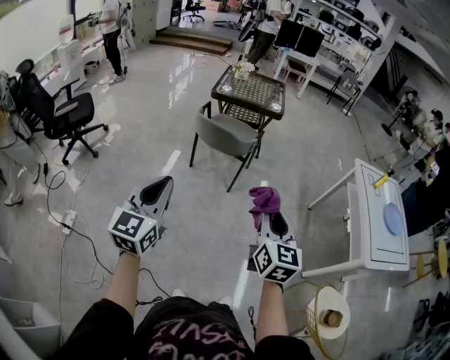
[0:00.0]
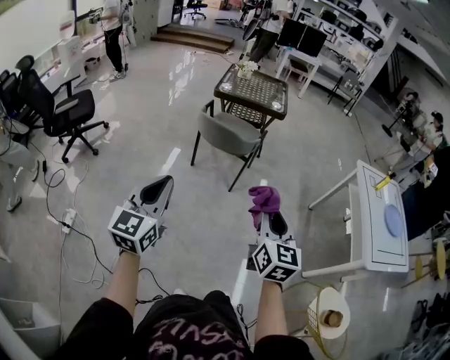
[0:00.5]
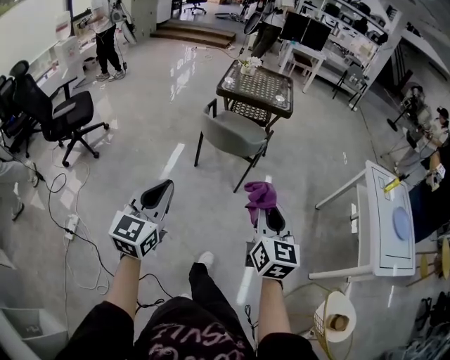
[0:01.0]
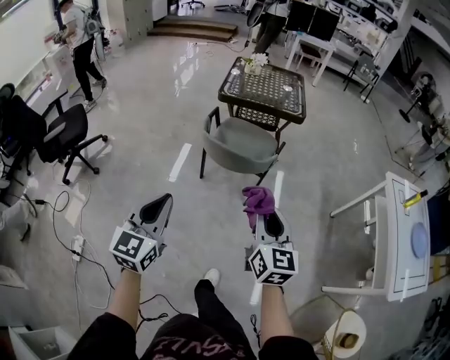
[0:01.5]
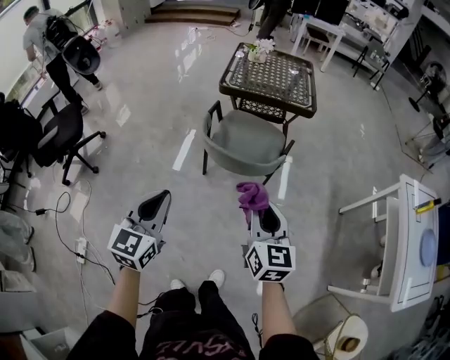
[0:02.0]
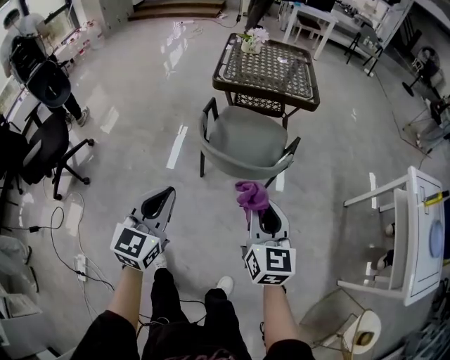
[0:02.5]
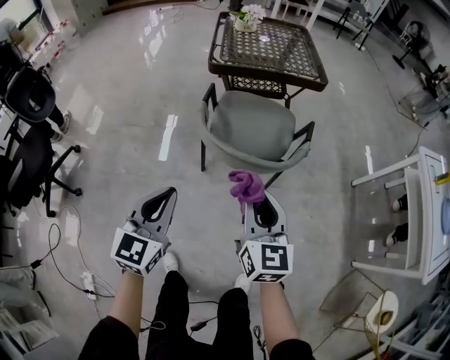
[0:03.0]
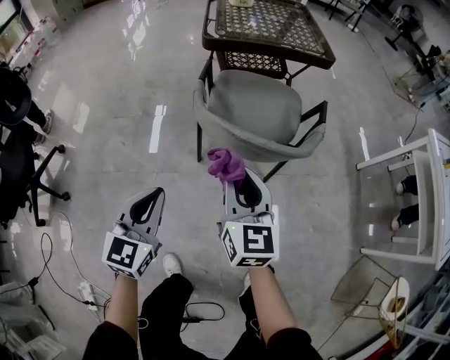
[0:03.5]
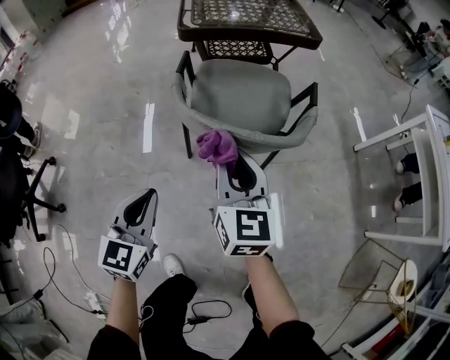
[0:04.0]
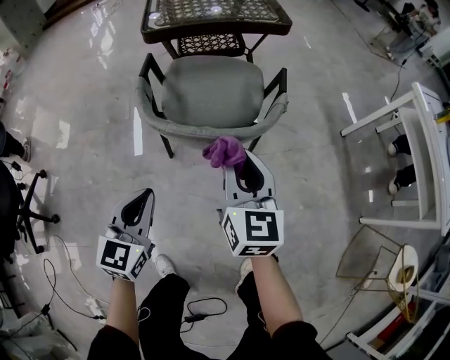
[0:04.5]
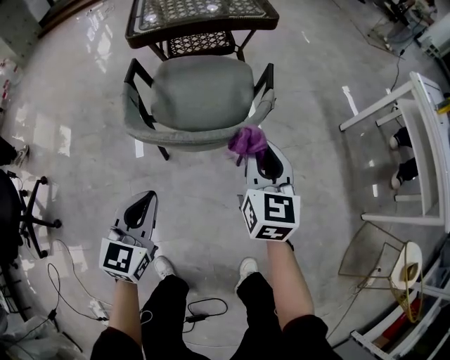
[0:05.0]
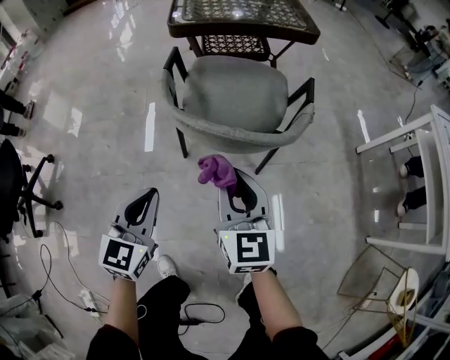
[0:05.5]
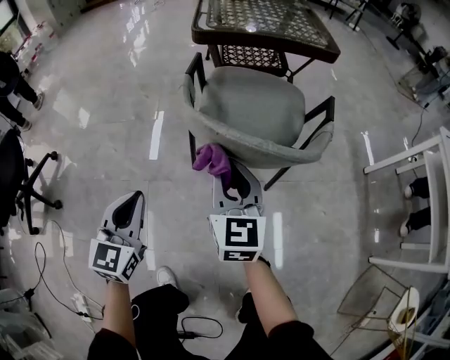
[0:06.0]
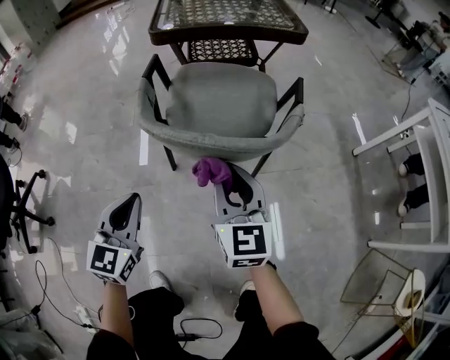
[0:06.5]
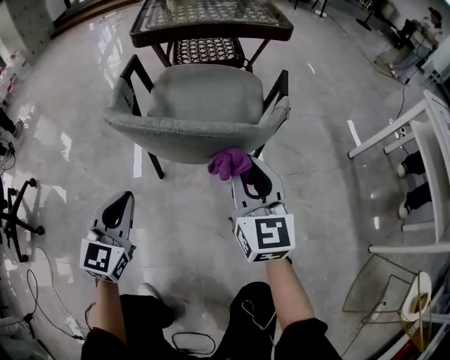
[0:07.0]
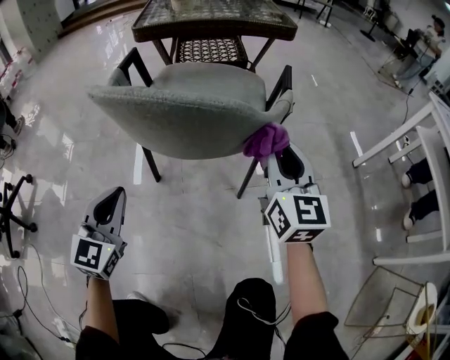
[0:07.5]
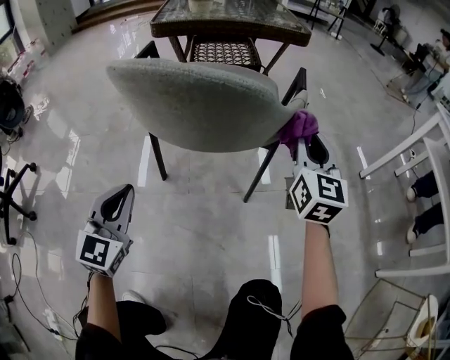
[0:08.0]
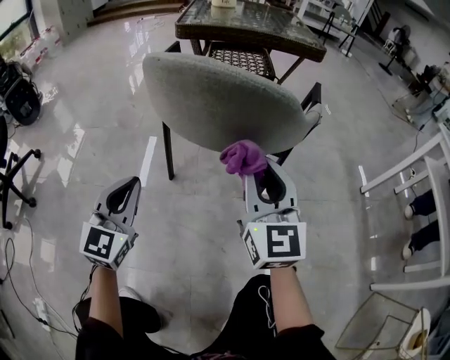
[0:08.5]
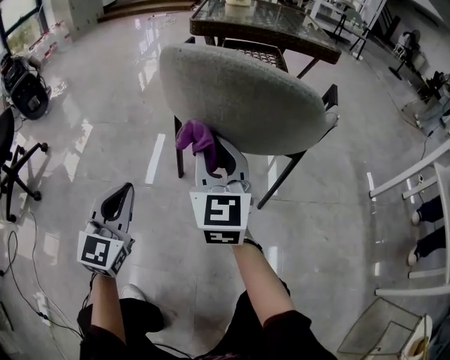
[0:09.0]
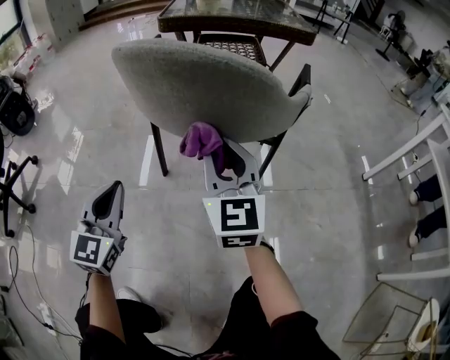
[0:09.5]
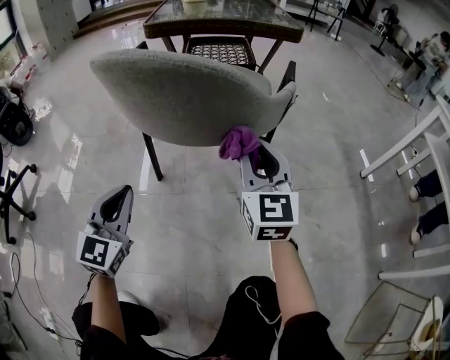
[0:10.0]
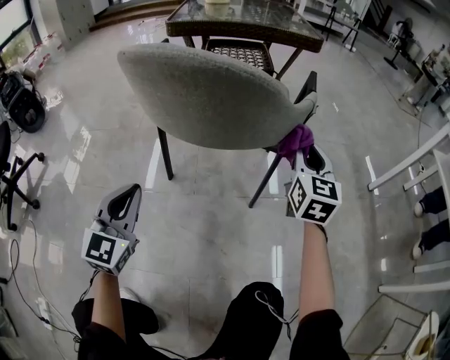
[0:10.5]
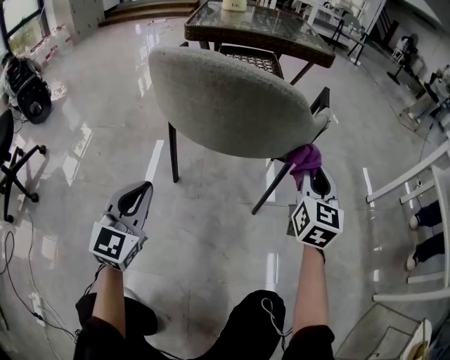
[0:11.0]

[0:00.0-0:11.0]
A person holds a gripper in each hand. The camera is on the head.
0:00.0 to 0:02.0: The two grippers go some 35 cm forward.
0:02.0 to 0:03.5: The right gripper is displaced to the left, downward and forward by some 35 cm, while the left gripper goes some 35 cm downward, forward and to the left.
0:03.5 to 0:05.5: The left gripper shifts about 10 cm to the right and downward. The right gripper goes roughly 5 cm downward, and goes to the right and returns, roughly 25 cm each way.
0:05.5 to 0:07.5: The right gripper travels to the right, forward and downward by approximately 25 cm, while the left gripper is displaced downward by roughly 15 cm.
0:07.5 to 0:09.0: The left gripper is displaced to the left and backward by approximately 10 cm. The right gripper travels to the left by some 25 cm.
0:09.0 to 0:11.0: The right gripper is displaced to the right by approximately 30 cm, and turns by approximately 20 degrees; the left gripper heads to the right, covering about 5 cm.

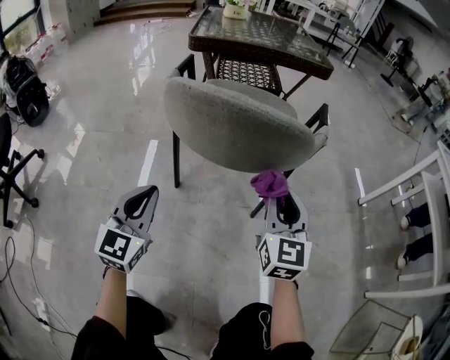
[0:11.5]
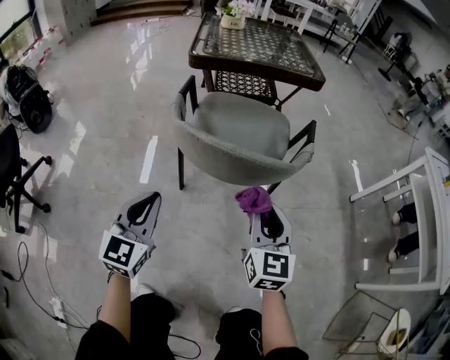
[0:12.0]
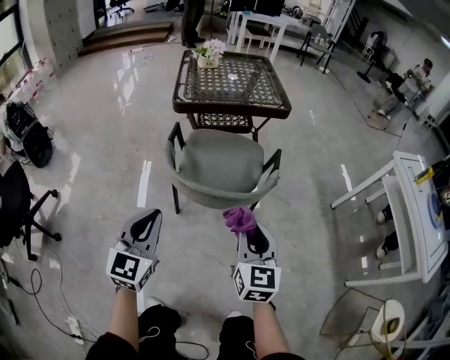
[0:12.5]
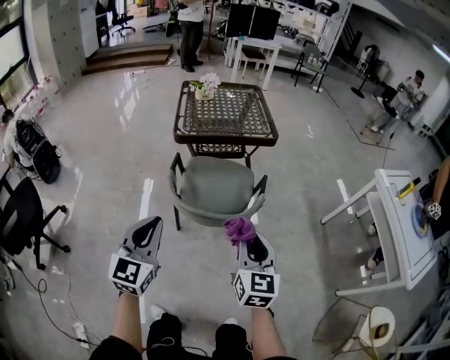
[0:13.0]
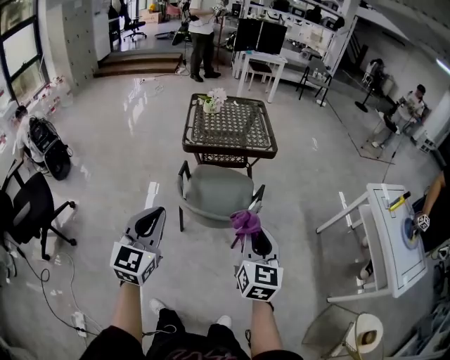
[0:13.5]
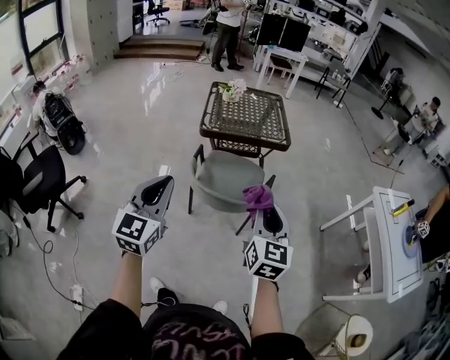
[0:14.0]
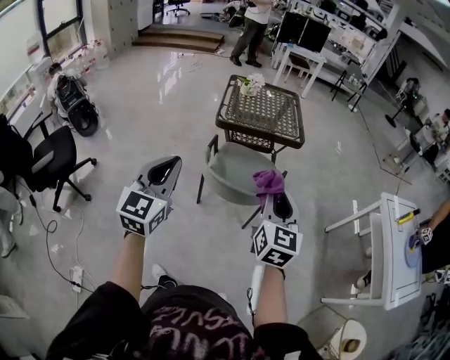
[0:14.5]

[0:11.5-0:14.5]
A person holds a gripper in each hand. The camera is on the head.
0:11.5 to 0:13.0: The grippers both shift upward by approximately 40 cm.
0:13.0 to 0:14.5: The right gripper goes approximately 20 cm upward. The left gripper goes about 20 cm upward and backward.

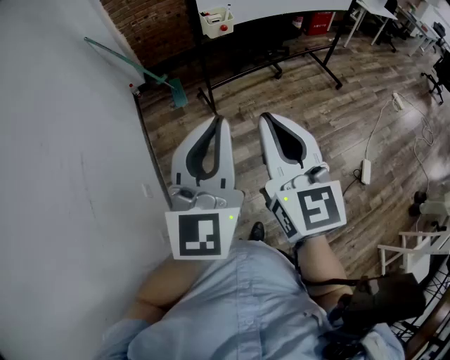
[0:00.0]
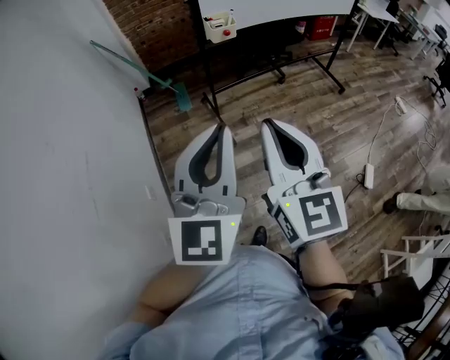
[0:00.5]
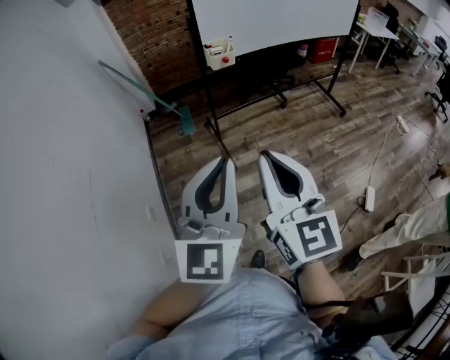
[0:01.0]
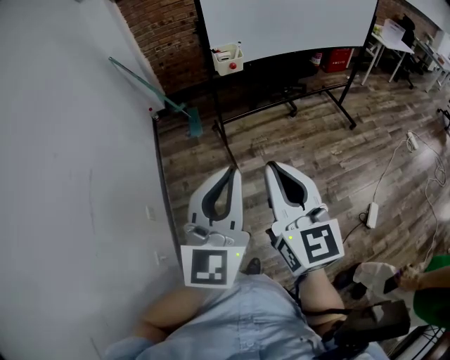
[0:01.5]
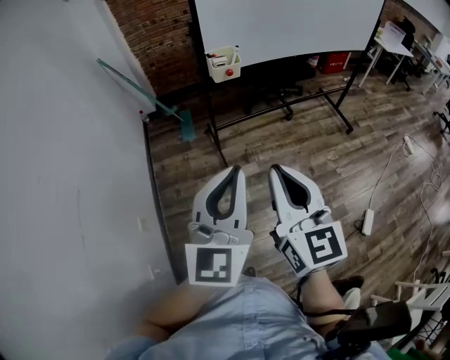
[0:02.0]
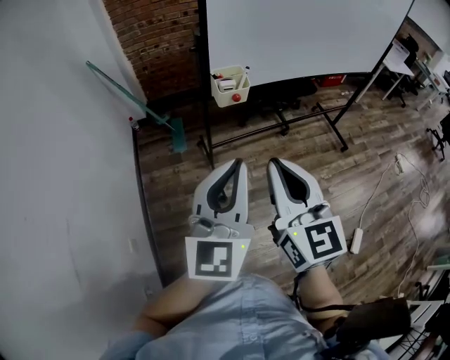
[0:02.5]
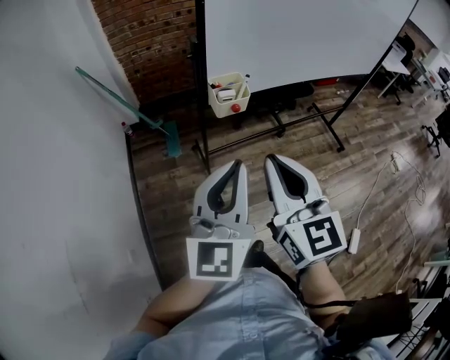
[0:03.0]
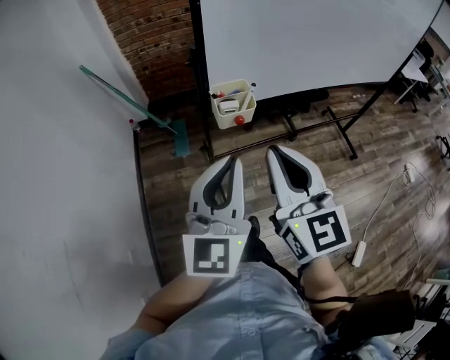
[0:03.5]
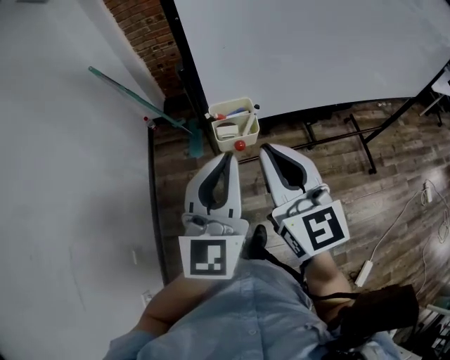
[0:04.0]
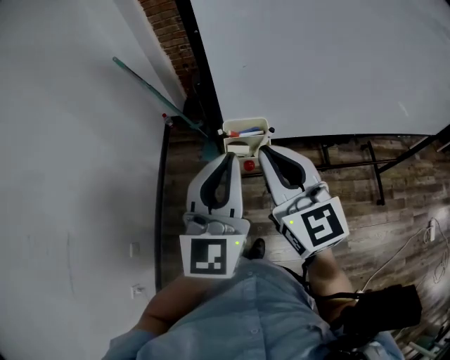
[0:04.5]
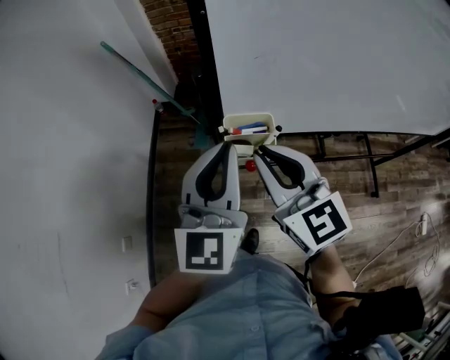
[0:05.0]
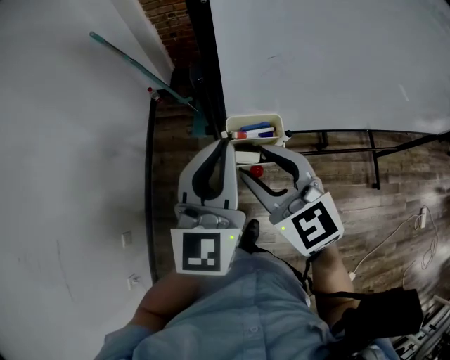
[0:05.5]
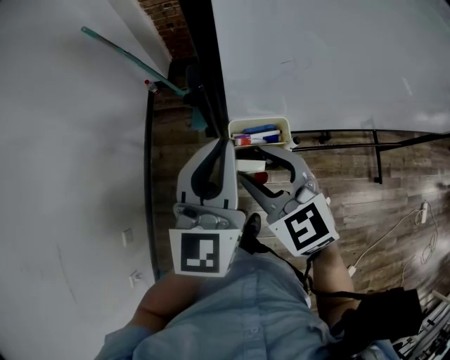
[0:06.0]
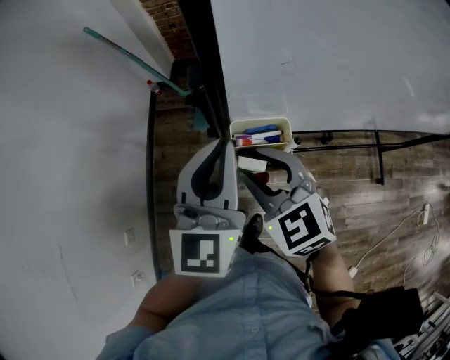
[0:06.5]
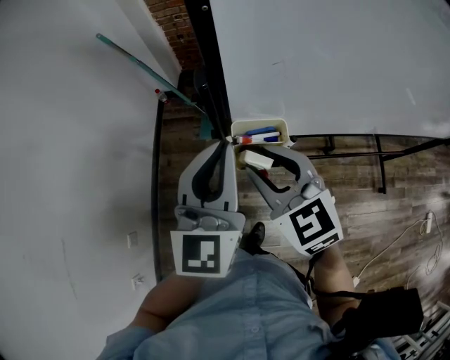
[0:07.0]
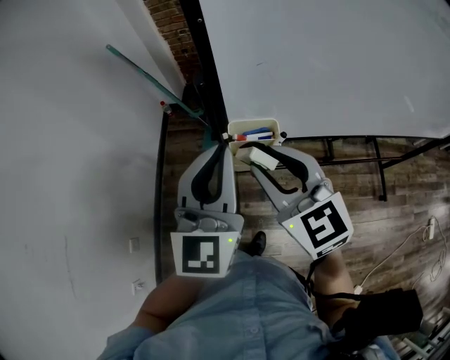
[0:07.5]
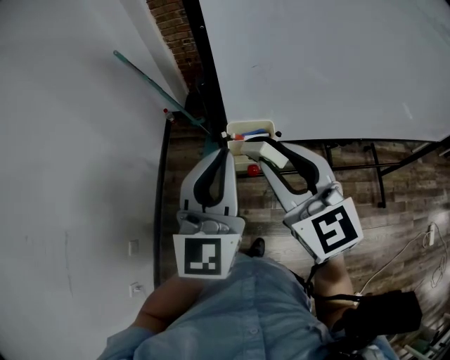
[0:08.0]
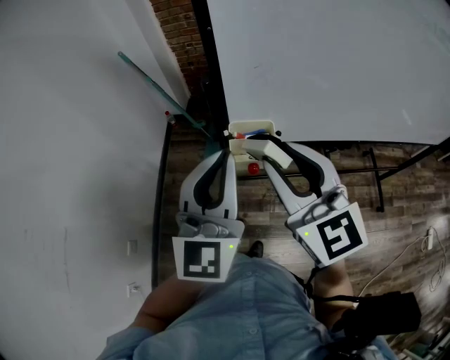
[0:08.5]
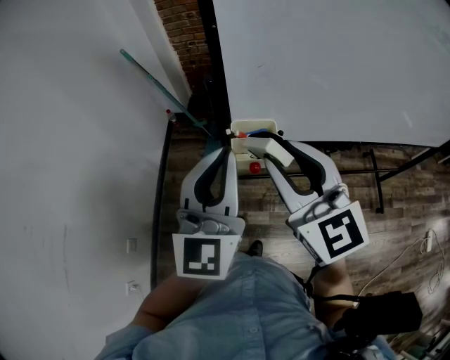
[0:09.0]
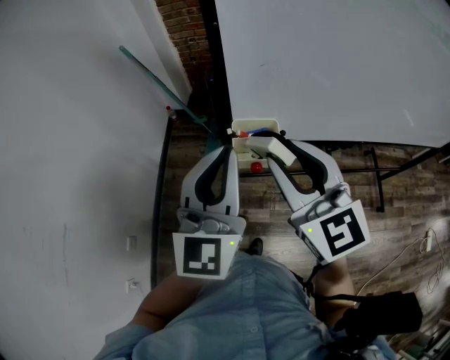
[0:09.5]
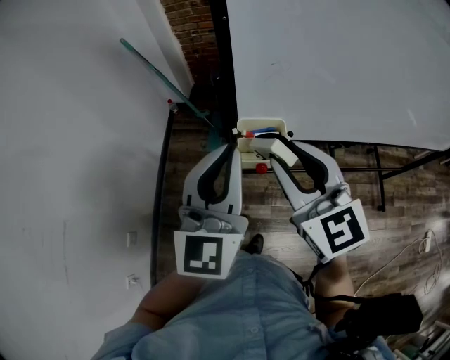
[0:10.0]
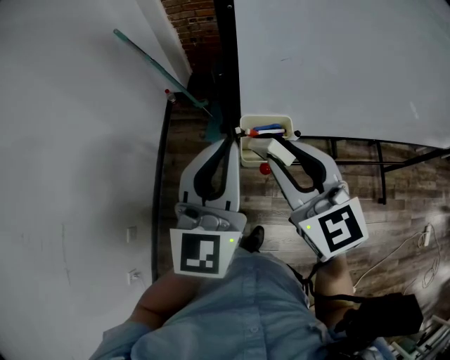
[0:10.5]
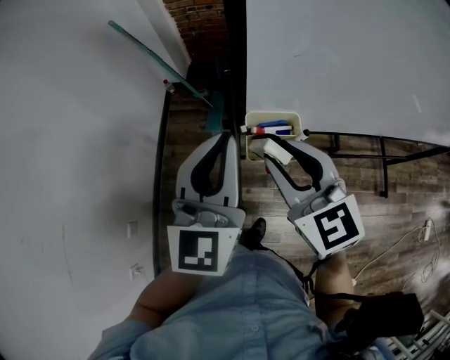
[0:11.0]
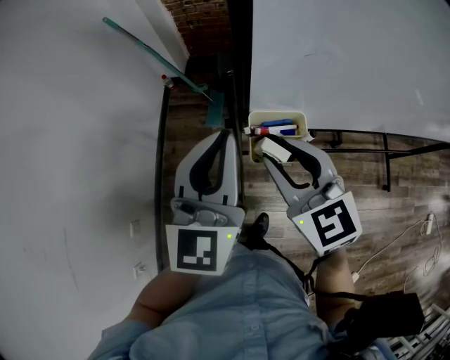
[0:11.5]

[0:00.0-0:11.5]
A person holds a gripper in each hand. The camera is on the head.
0:00.0 to 0:02.0: Both grippers travel together forward and to the right, some 10 cm.
0:02.0 to 0:04.0: The two grippers go approximately 40 cm forward.
0:04.0 to 0:06.0: The left gripper heads forward, covering about 15 cm; the right gripper moves downward and forward, roughly 20 cm, changes its angle by approximately 40 degrees, and opens.
0:06.0 to 0:07.5: The right gripper is displaced upward by about 10 cm. Meanwhile the left gripper shifts about 10 cm backward and upward.
0:07.5 to 0:09.5: The right gripper travels upward by roughly 5 cm.
0:09.5 to 0:11.5: The left gripper goes roughly 10 cm forward and downward; the right gripper goes some 10 cm downward and forward.

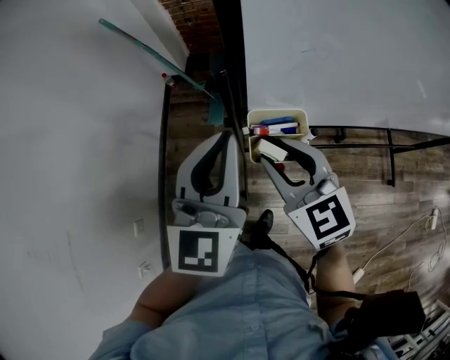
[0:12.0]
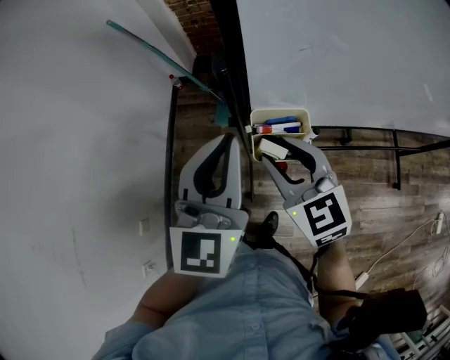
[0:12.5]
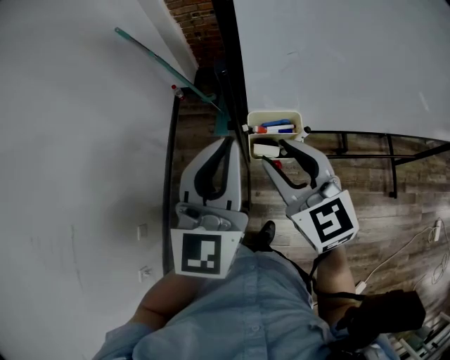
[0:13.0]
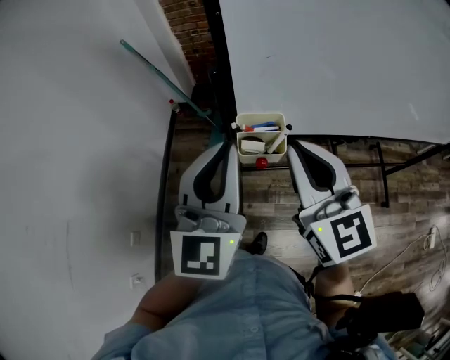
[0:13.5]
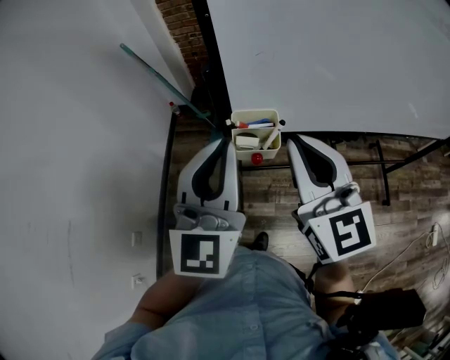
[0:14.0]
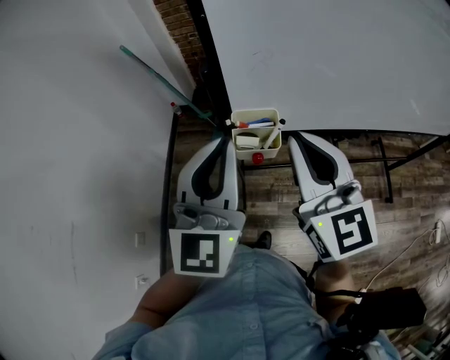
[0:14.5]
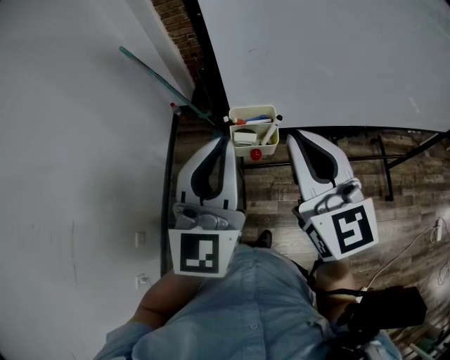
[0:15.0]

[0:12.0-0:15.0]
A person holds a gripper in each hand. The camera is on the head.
0:12.0 to 0:13.5: The left gripper shifts approximately 10 cm backward and upward. The right gripper heads upward and backward, covering about 15 cm, swivels approximately 20 degrees, and closes up.
0:13.5 to 0:15.0: The grippers move only a little.
